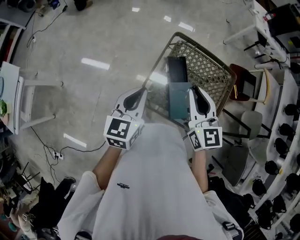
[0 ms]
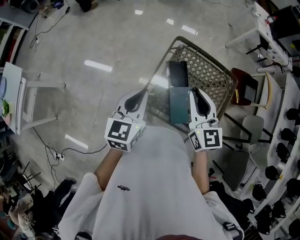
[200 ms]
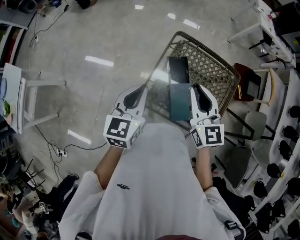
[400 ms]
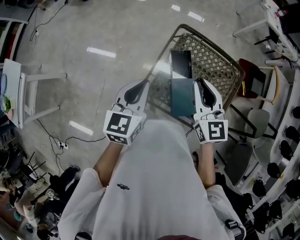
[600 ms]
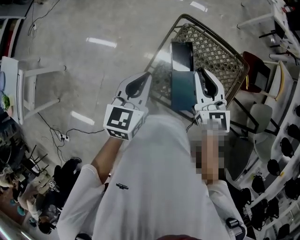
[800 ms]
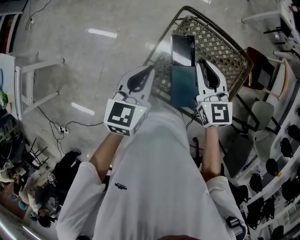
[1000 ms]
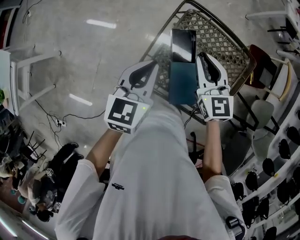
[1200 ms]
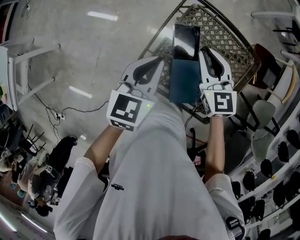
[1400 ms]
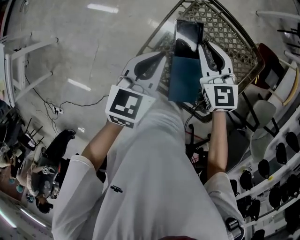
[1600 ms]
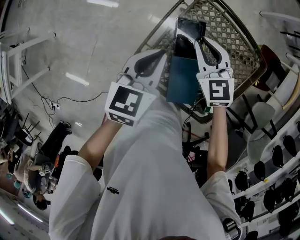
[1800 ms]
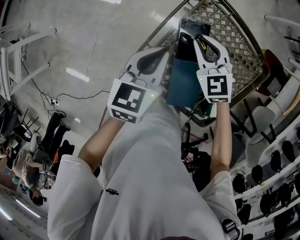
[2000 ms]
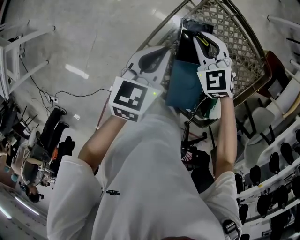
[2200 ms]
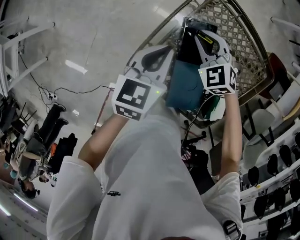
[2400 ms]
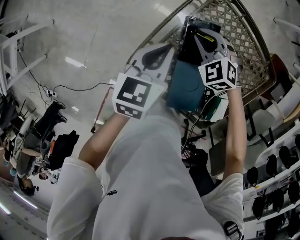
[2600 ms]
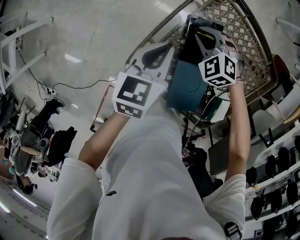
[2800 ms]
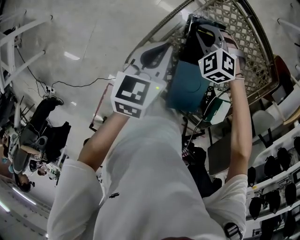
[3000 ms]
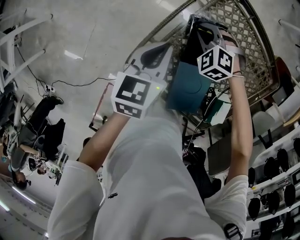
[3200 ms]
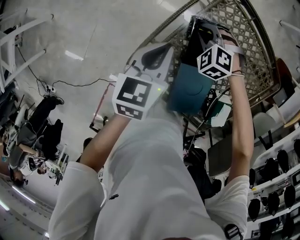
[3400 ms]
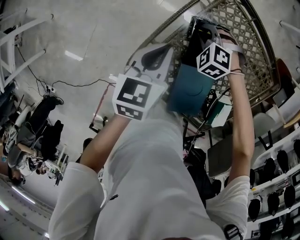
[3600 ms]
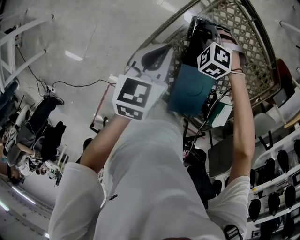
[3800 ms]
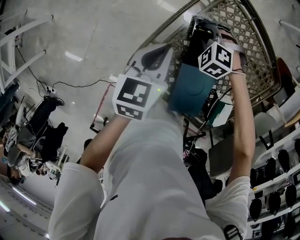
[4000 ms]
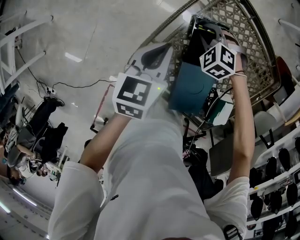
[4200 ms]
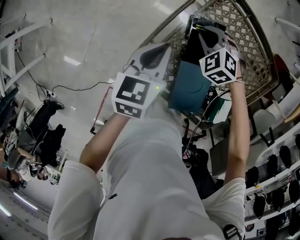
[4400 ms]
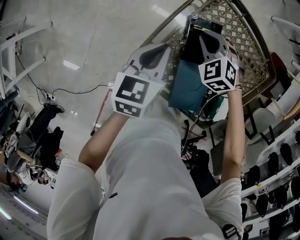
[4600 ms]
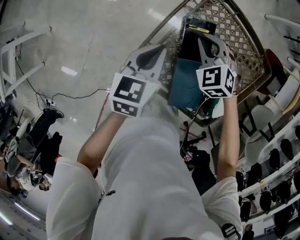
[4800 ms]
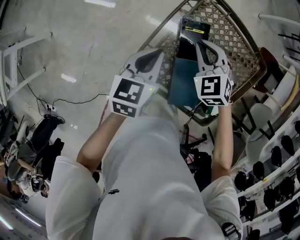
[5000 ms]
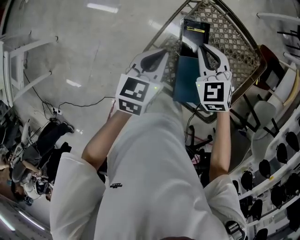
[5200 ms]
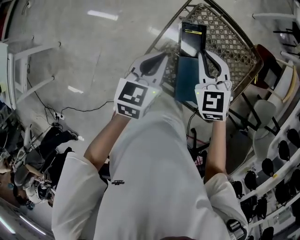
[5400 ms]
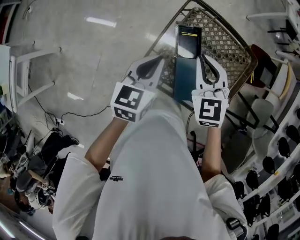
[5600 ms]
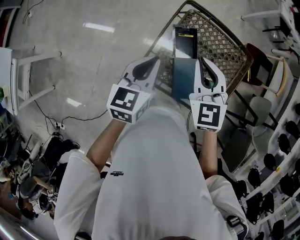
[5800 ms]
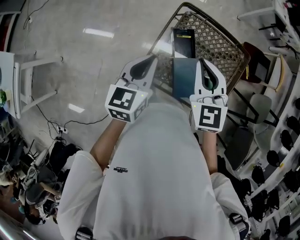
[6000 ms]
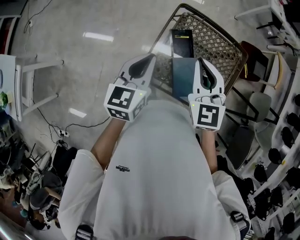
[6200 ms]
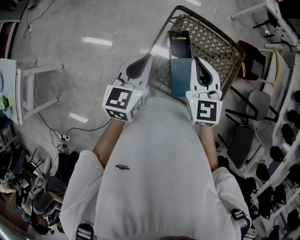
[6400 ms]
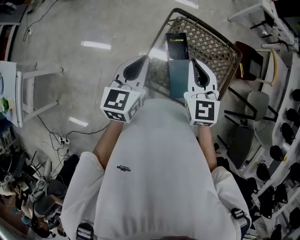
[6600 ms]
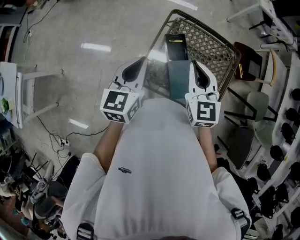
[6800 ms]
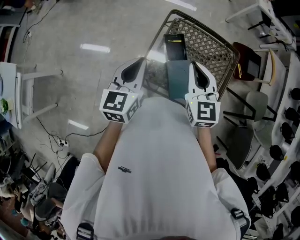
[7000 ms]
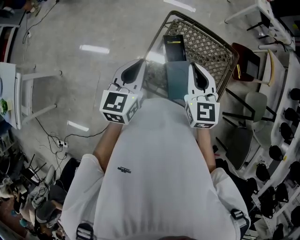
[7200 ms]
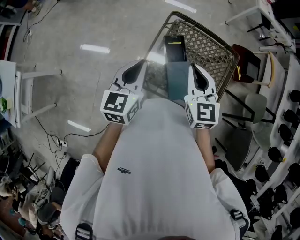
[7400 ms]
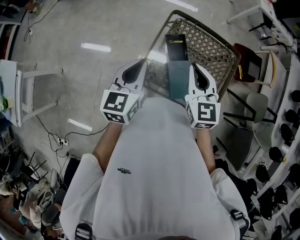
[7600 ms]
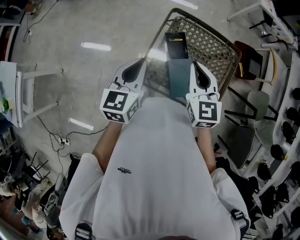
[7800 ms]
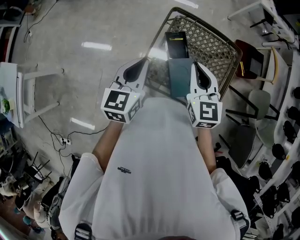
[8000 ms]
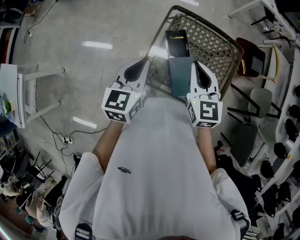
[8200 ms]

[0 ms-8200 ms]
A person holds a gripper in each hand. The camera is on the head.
0 ms to 1600 ms: The left gripper goes about 20 cm downward, forward and to the right. The right gripper moves downward and forward, about 25 cm, and rotates some 20 degrees.
1600 ms to 3200 ms: The left gripper is displaced downward by some 15 cm, while the right gripper travels downward by approximately 25 cm, and angles its fingers downward, by roughly 40 degrees.
3200 ms to 5000 ms: The left gripper goes roughly 5 cm upward, while the right gripper shifts approximately 15 cm upward, and changes its angle by approximately 30 degrees.
5000 ms to 6600 ms: The right gripper heads upward and backward, covering some 30 cm, and rotates roughly 40 degrees. Meanwhile the left gripper heads upward, covering approximately 20 cm.
6600 ms to 8200 ms: The grippers make only small movements.

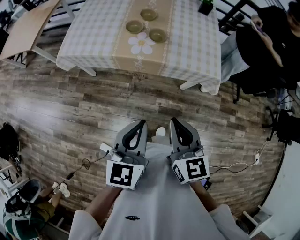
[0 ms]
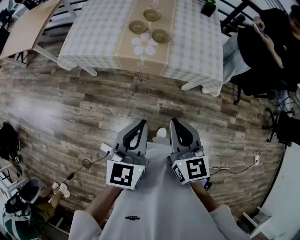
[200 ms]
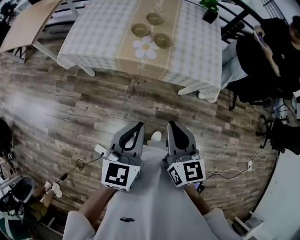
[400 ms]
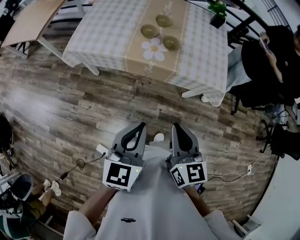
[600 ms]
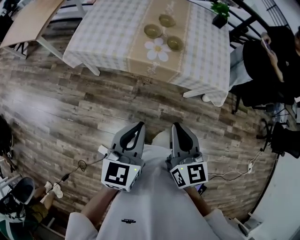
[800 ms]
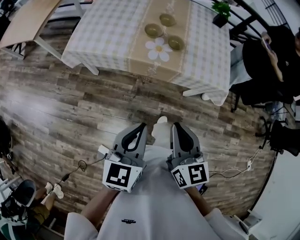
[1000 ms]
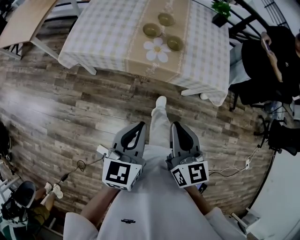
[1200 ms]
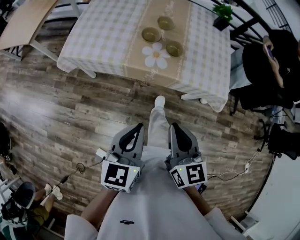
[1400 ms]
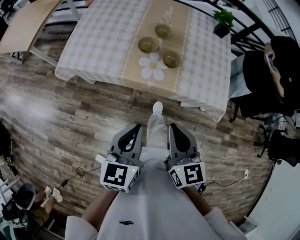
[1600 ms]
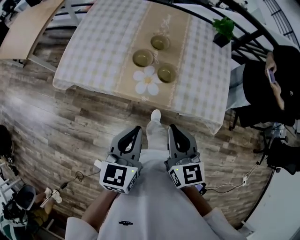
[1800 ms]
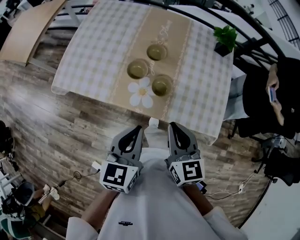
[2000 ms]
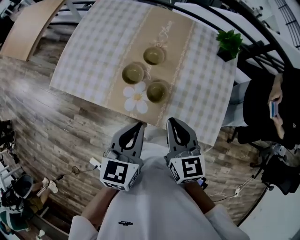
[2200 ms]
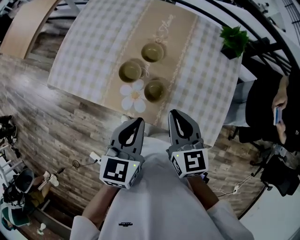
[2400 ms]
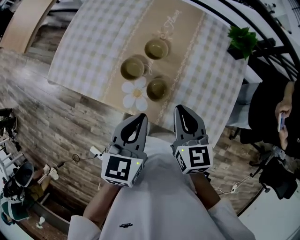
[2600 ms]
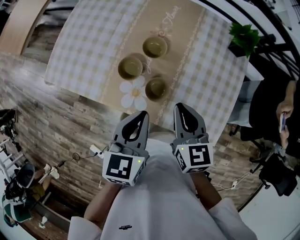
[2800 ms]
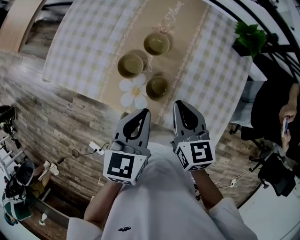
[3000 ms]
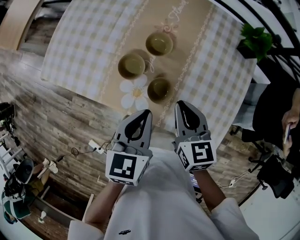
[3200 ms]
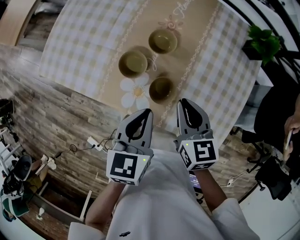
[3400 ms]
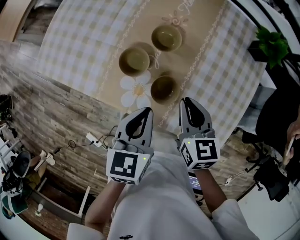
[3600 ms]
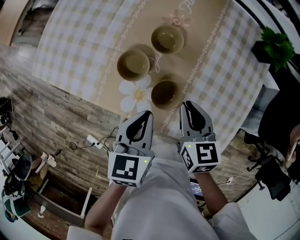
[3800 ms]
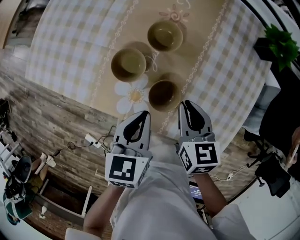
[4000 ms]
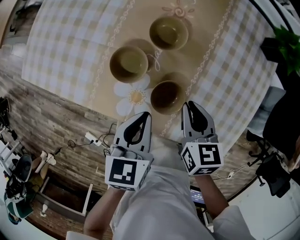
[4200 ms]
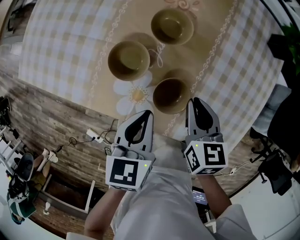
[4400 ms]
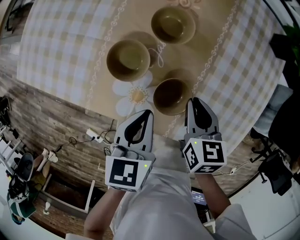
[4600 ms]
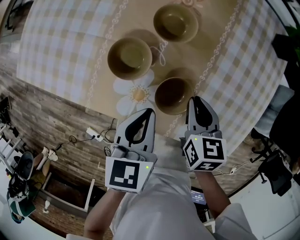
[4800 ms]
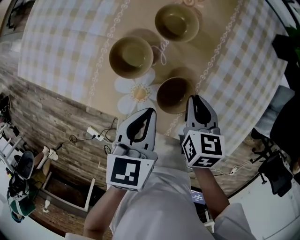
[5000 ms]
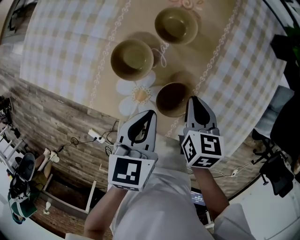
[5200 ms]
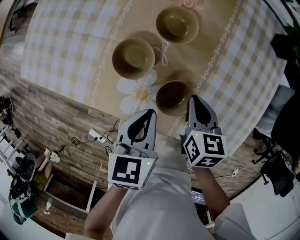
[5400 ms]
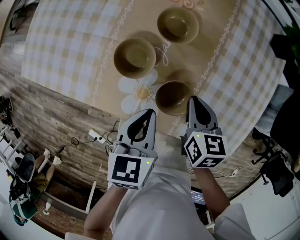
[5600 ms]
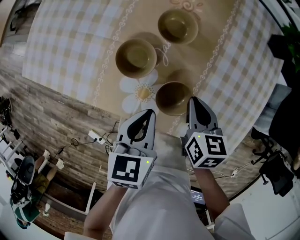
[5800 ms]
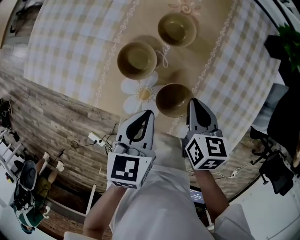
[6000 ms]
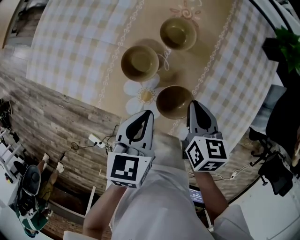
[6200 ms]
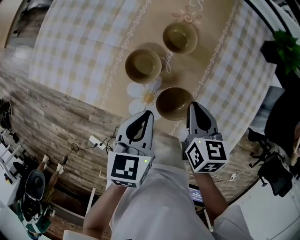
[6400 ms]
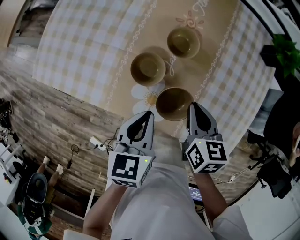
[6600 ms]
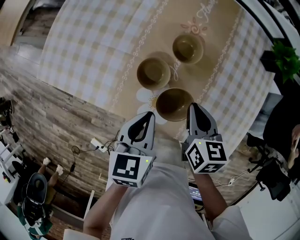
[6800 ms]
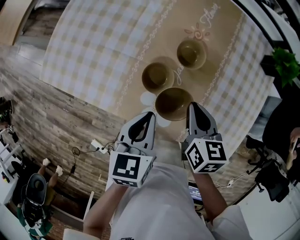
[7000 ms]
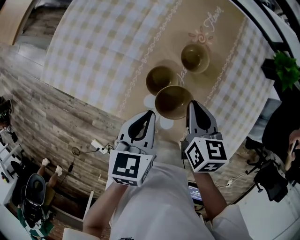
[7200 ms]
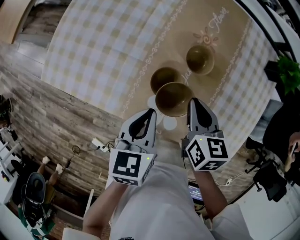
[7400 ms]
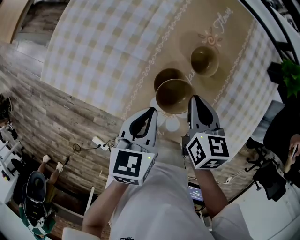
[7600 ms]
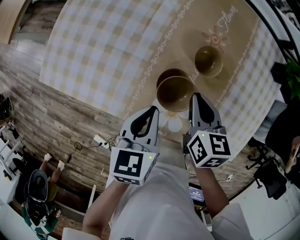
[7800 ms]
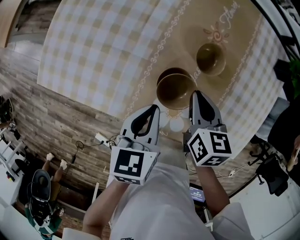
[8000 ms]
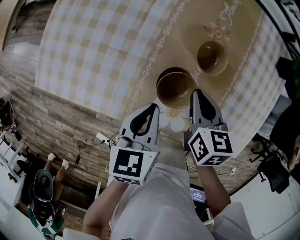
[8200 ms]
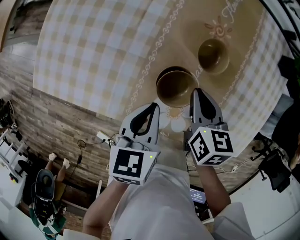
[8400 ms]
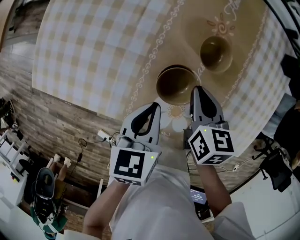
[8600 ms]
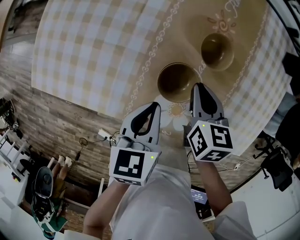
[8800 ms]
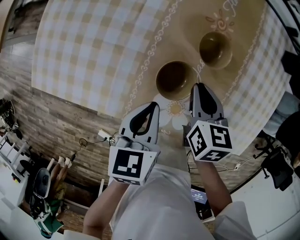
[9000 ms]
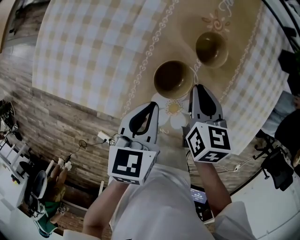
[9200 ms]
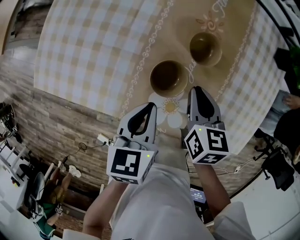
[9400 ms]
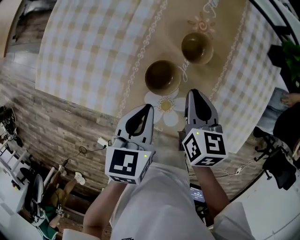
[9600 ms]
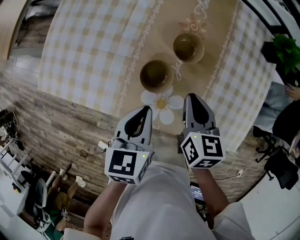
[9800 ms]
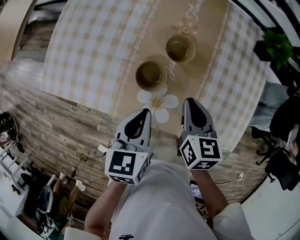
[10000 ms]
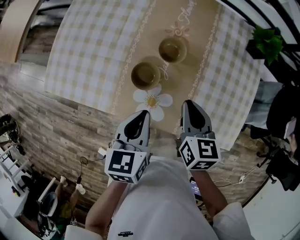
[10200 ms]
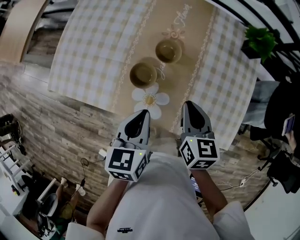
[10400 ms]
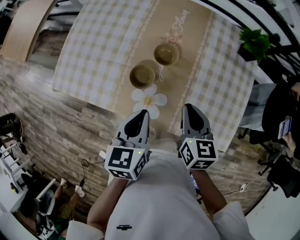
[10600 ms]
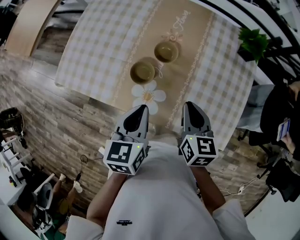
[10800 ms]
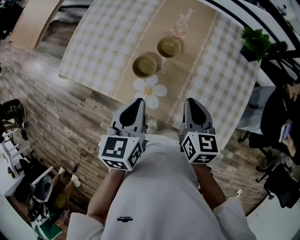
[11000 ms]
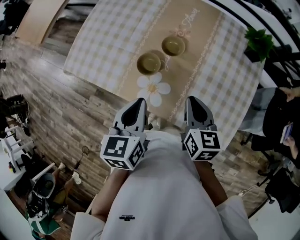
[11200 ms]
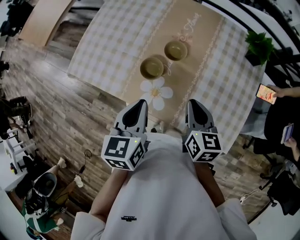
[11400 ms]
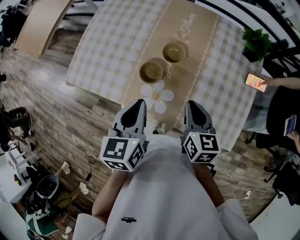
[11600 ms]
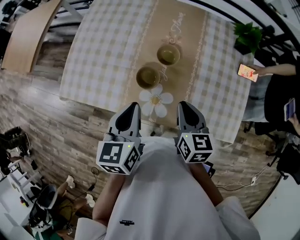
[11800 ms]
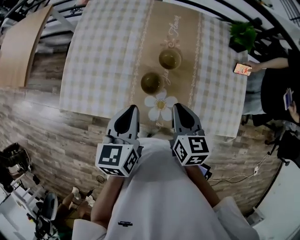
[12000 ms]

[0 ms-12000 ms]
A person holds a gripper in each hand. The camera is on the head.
0 ms to 1600 ms: The left gripper shifts approximately 15 cm to the left and forward. The right gripper is displaced forward and to the left by some 15 cm.
1600 ms to 3000 ms: The left gripper goes approximately 25 cm forward, to the right and downward; the right gripper goes roughly 25 cm forward, downward and to the right.
3000 ms to 4400 ms: Both grippers move downward, about 20 cm.
4400 ms to 6000 ms: The grippers stay close to where they were, moving slightly.
6000 ms to 7600 ms: The right gripper travels to the left, forward and upward by approximately 15 cm, while the left gripper moves to the left and forward, about 15 cm.
7600 ms to 9000 ms: The two grippers go some 5 cm downward.
9000 ms to 10400 ms: Both grippers move upward, to the right and backward, approximately 20 cm.
10400 ms to 12000 ms: The right gripper travels to the left by some 10 cm; the left gripper goes about 15 cm to the left and upward.

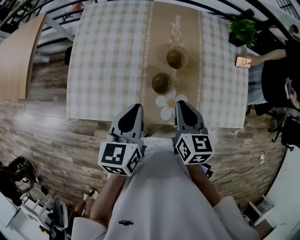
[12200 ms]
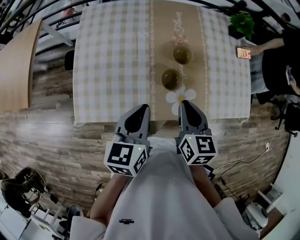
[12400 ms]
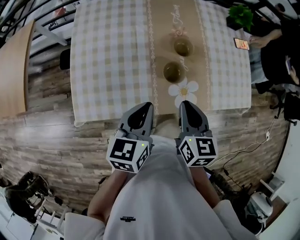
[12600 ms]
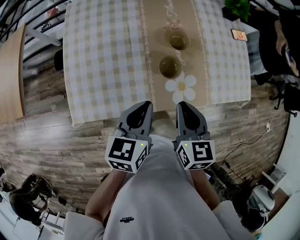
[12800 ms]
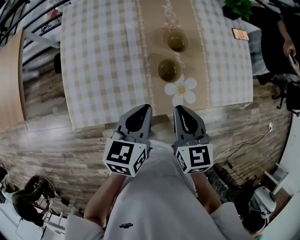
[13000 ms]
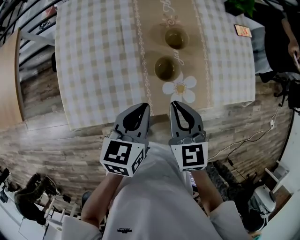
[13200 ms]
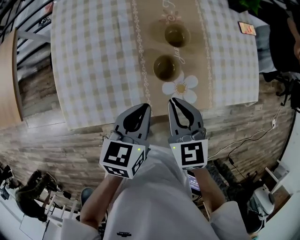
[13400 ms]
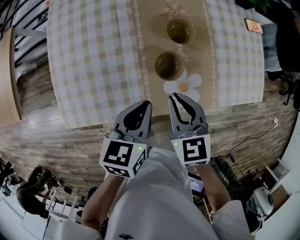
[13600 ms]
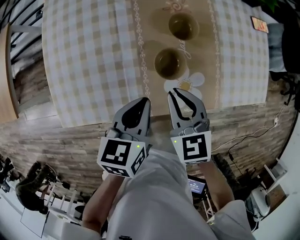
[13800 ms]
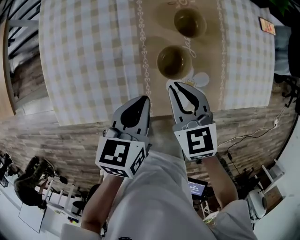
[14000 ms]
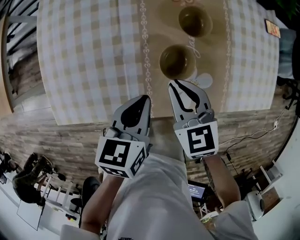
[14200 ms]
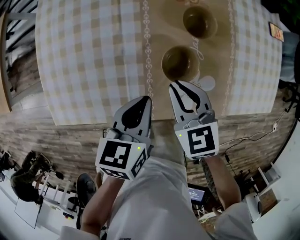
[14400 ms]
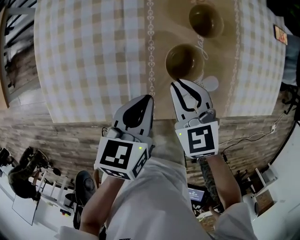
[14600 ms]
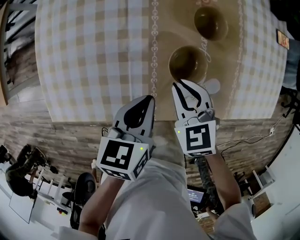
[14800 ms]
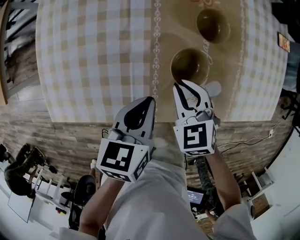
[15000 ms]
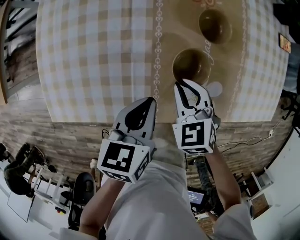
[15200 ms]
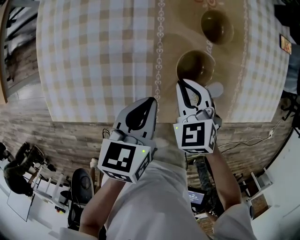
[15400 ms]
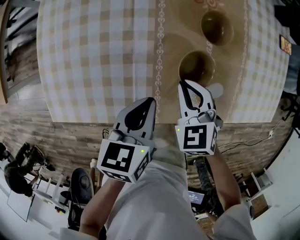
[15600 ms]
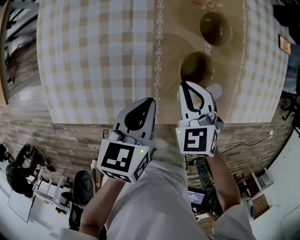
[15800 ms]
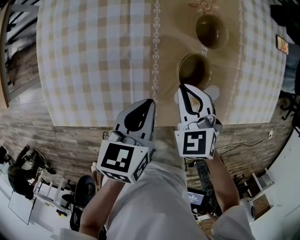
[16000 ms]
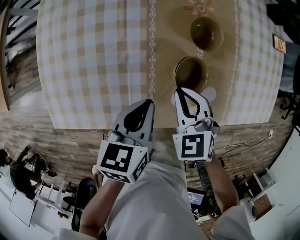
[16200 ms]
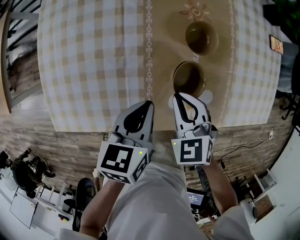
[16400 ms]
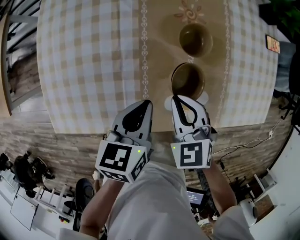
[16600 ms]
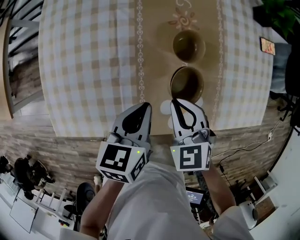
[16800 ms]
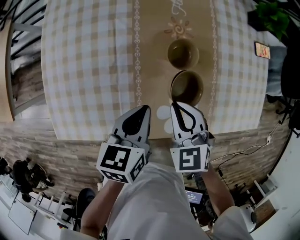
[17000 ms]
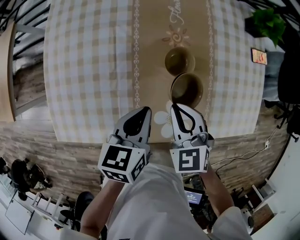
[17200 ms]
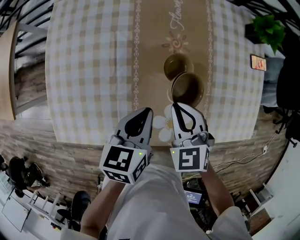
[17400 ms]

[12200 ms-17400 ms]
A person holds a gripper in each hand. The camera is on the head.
12200 ms to 14000 ms: The left gripper goes roughly 15 cm downward, and turns by approximately 20 degrees; the right gripper is displaced downward and to the left by about 15 cm, and turns by some 20 degrees.
14000 ms to 15600 ms: The right gripper heads downward, covering approximately 10 cm, and changes its angle by about 20 degrees. Meanwhile the left gripper shifts approximately 5 cm downward.
15600 ms to 17400 ms: The right gripper travels upward, forward and to the right by approximately 15 cm; the left gripper heads forward, upward and to the right, covering approximately 15 cm.
